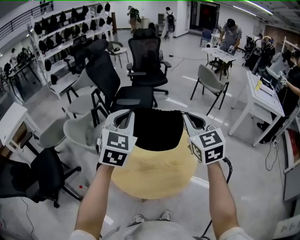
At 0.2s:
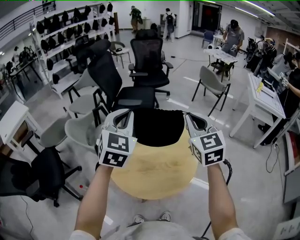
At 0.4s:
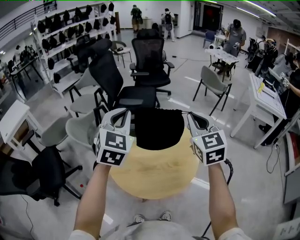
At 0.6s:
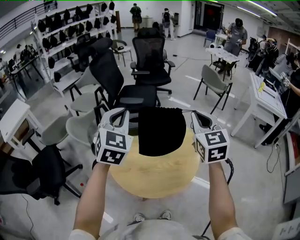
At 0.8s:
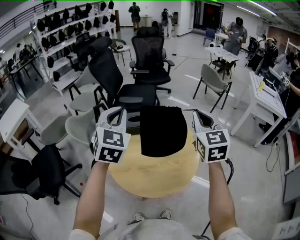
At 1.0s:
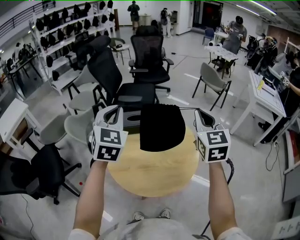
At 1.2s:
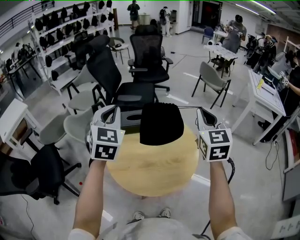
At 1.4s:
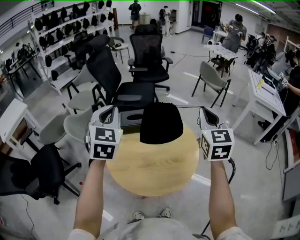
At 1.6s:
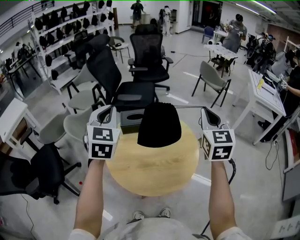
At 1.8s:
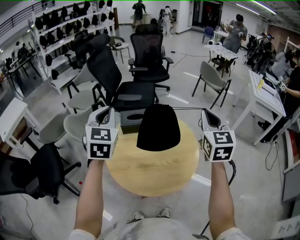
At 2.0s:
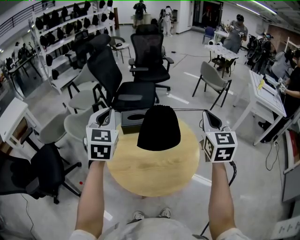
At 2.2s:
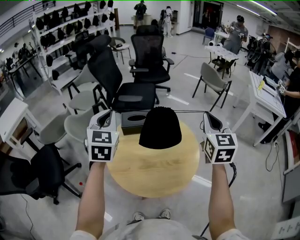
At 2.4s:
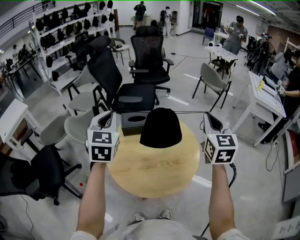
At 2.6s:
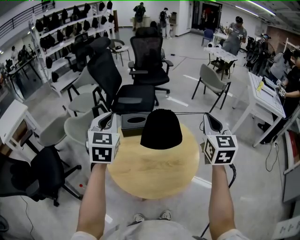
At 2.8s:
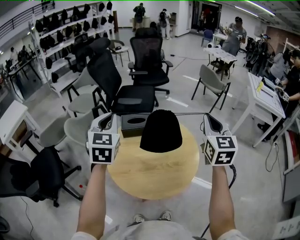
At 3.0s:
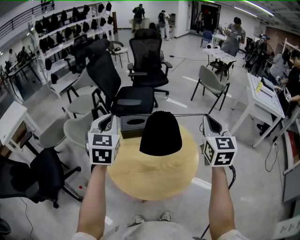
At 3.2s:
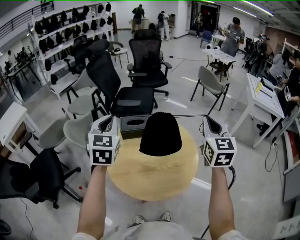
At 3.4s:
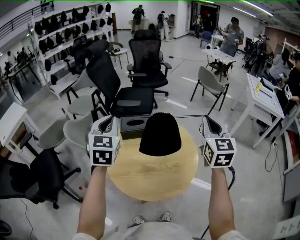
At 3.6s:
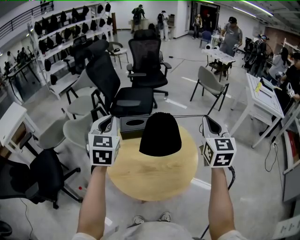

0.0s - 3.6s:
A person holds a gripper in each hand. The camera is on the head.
0.0s - 1.8s: The left gripper shifts about 10 cm to the left. The right gripper shifts some 5 cm to the right.
1.8s - 3.6s: There are only small adjustments of the grippers.

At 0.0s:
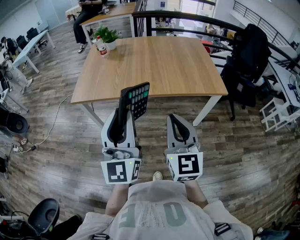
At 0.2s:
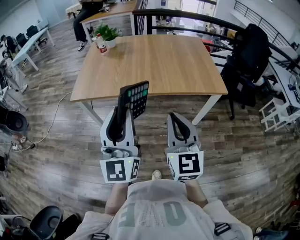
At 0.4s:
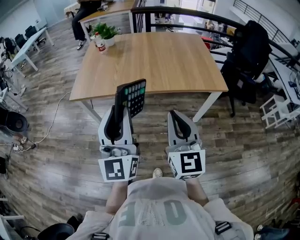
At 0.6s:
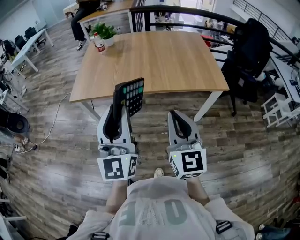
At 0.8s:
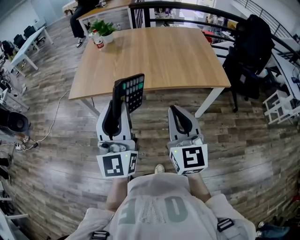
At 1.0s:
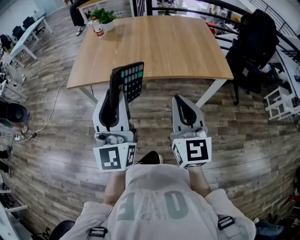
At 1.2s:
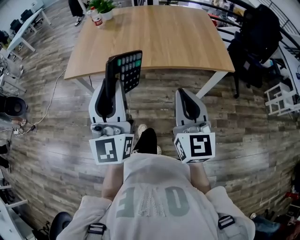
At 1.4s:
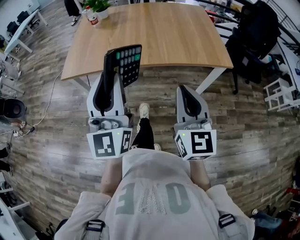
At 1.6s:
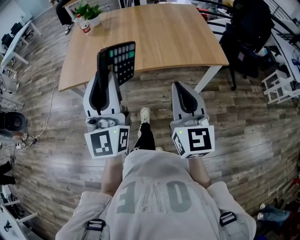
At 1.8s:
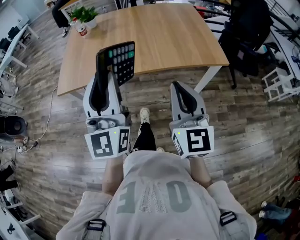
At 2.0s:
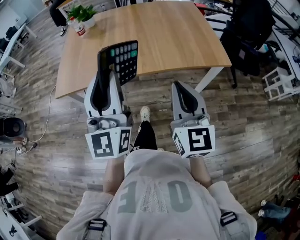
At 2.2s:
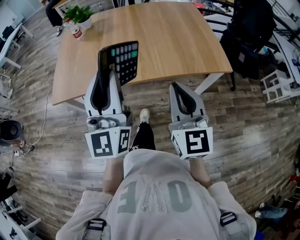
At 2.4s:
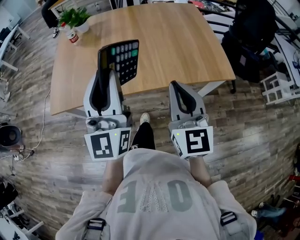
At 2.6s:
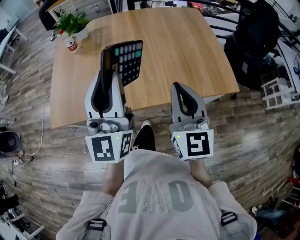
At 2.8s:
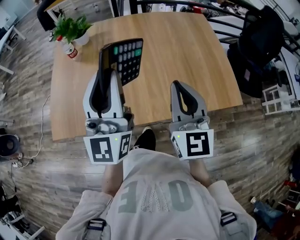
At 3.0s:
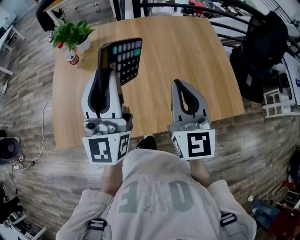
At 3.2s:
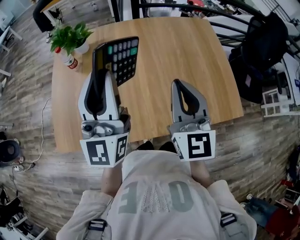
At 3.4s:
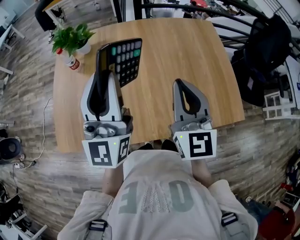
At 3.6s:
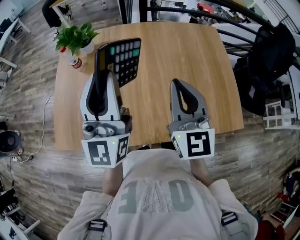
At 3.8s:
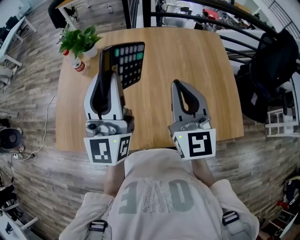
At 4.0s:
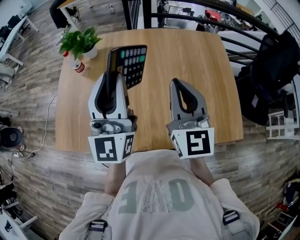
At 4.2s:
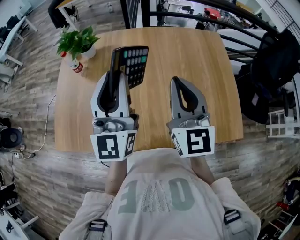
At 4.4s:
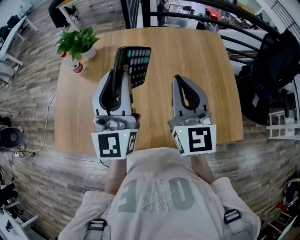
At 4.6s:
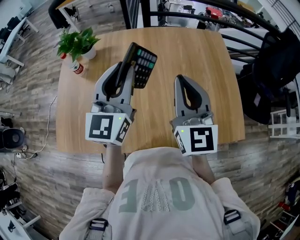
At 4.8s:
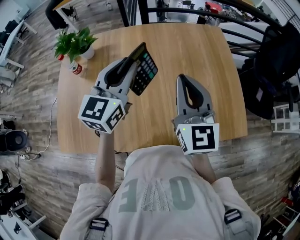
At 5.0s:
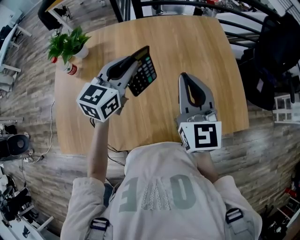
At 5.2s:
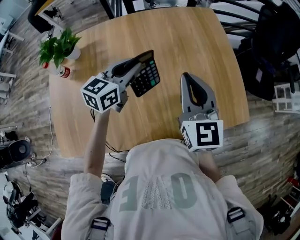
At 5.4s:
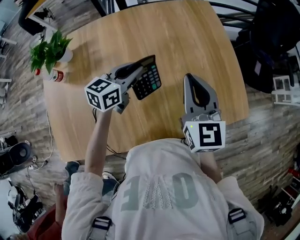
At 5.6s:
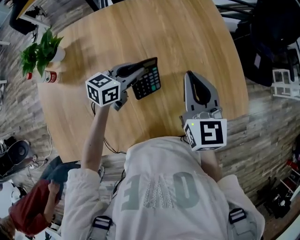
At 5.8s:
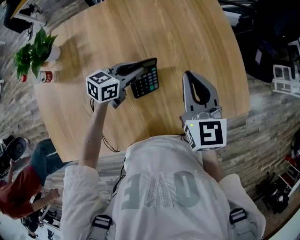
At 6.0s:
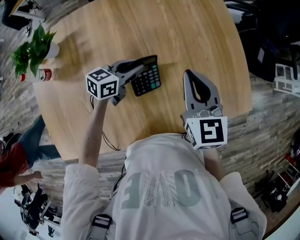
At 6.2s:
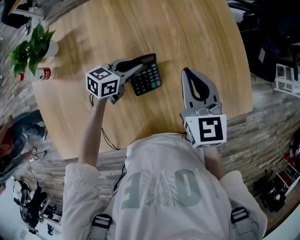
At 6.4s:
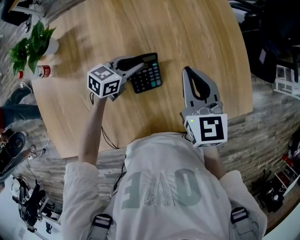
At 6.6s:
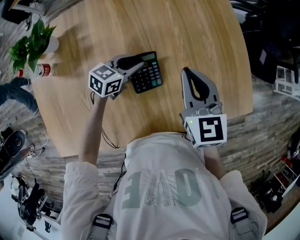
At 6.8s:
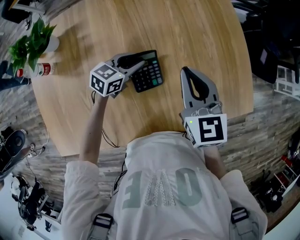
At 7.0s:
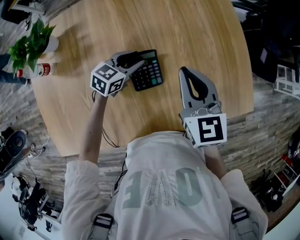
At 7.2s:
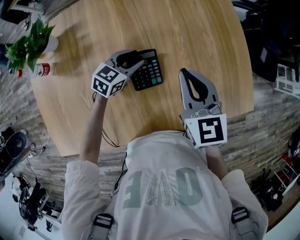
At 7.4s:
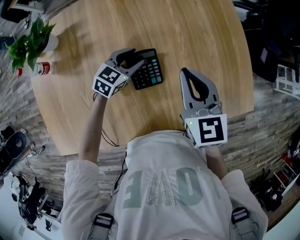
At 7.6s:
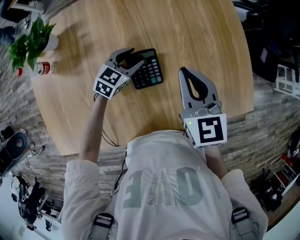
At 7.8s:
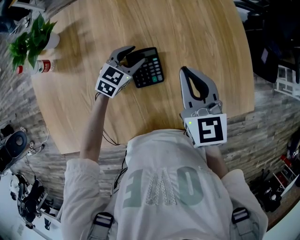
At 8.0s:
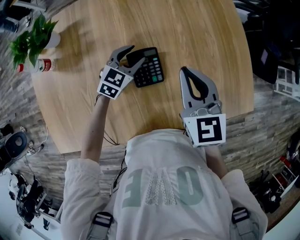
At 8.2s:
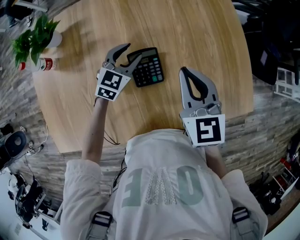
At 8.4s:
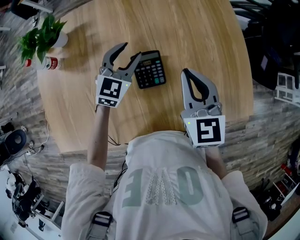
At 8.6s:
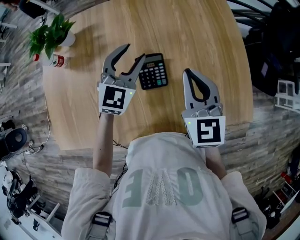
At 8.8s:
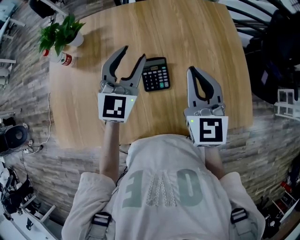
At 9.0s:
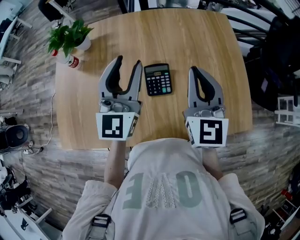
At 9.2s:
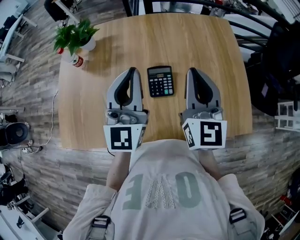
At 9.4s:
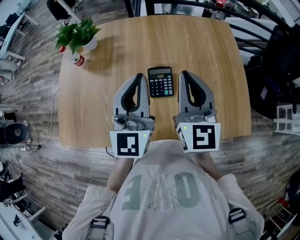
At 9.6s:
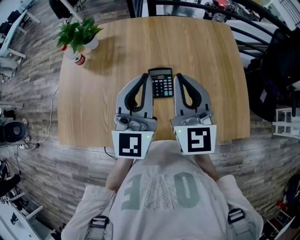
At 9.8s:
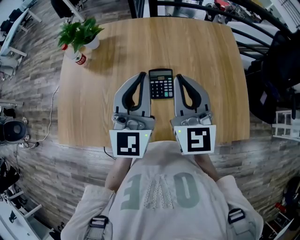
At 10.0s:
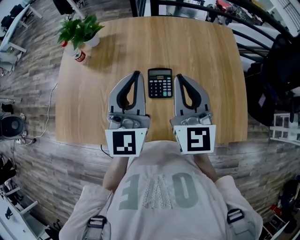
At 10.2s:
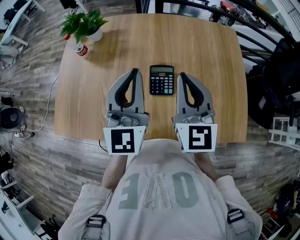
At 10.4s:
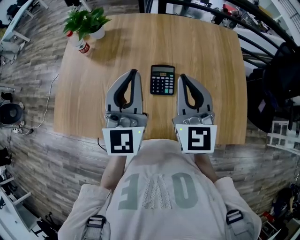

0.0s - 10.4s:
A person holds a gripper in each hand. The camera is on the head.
0.0s - 1.4s: The right gripper changes place by roughly 5 cm.
1.4s - 3.0s: The two grippers travel together, forward, approximately 40 cm.
3.0s - 4.4s: The left gripper heads forward and to the right, covering some 10 cm, while the right gripper heads forward, covering about 10 cm.
4.4s - 6.0s: The right gripper moves downward, approximately 15 cm, and swivels roughly 30 degrees. Meanwhile the left gripper travels downward by some 30 cm, and angles its fingers downward, by some 40 degrees.
6.0s - 7.4s: The left gripper turns by roughly 30 degrees, and opens.
7.4s - 9.0s: The right gripper moves upward, roughly 10 cm, and swivels roughly 20 degrees. The left gripper is displaced upward by some 30 cm, and angles its fingers upward, by about 40 degrees.
9.0s - 10.4s: The left gripper goes approximately 5 cm backward, and closes up; the right gripper travels to the left by some 5 cm.

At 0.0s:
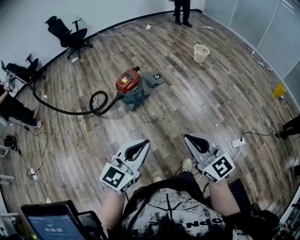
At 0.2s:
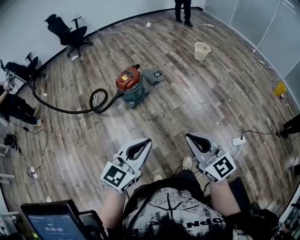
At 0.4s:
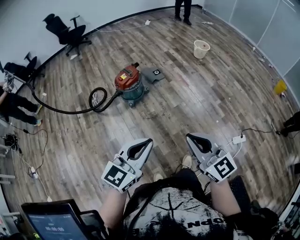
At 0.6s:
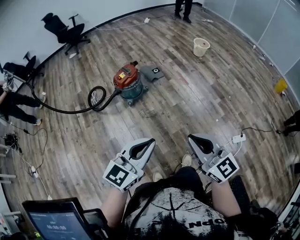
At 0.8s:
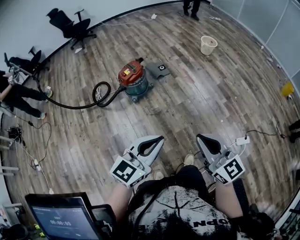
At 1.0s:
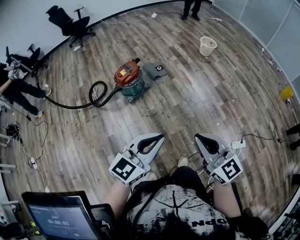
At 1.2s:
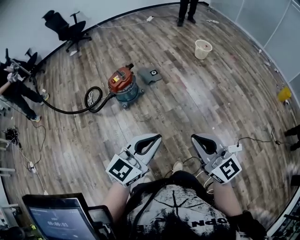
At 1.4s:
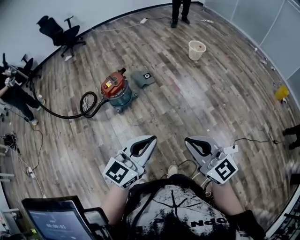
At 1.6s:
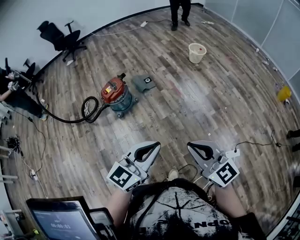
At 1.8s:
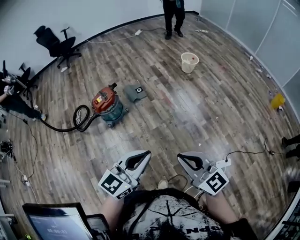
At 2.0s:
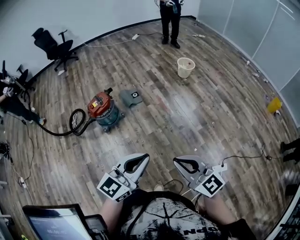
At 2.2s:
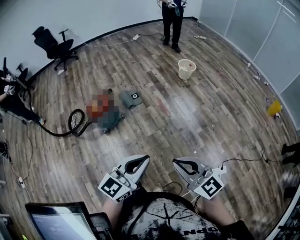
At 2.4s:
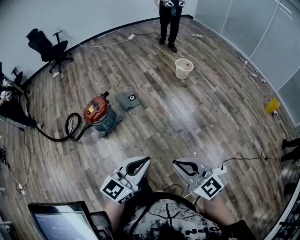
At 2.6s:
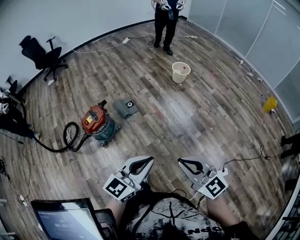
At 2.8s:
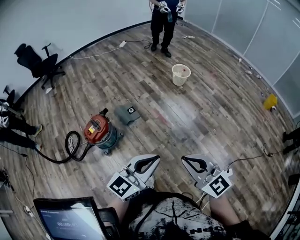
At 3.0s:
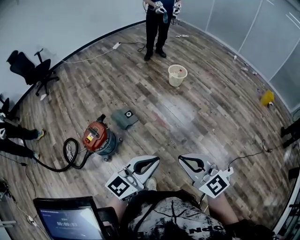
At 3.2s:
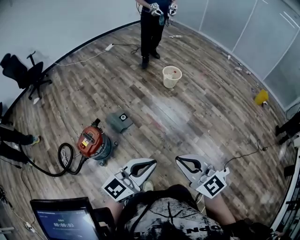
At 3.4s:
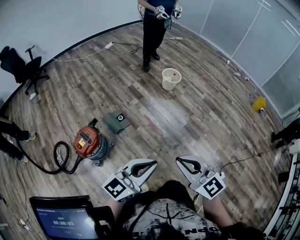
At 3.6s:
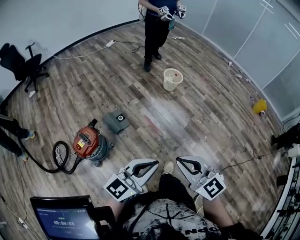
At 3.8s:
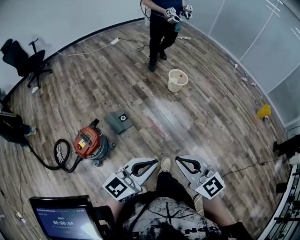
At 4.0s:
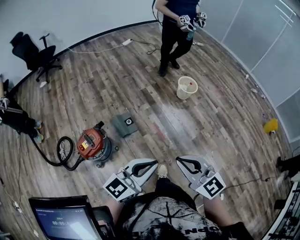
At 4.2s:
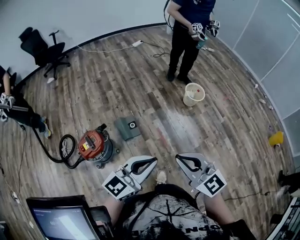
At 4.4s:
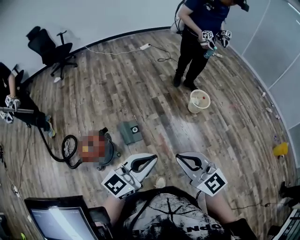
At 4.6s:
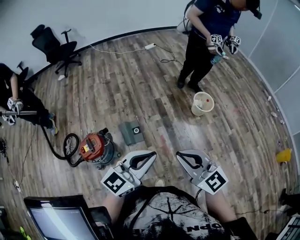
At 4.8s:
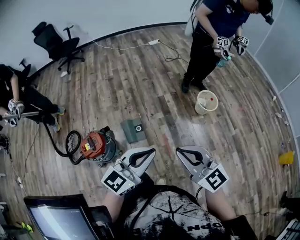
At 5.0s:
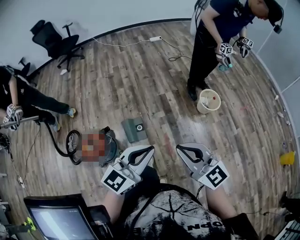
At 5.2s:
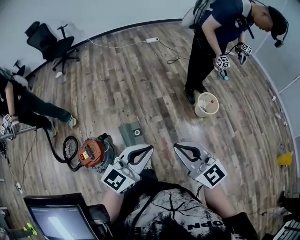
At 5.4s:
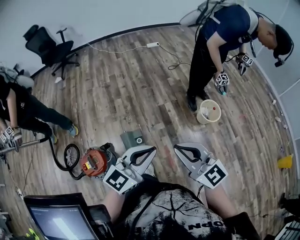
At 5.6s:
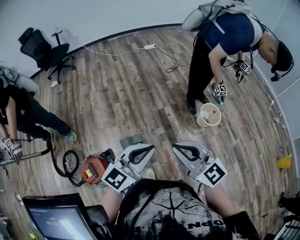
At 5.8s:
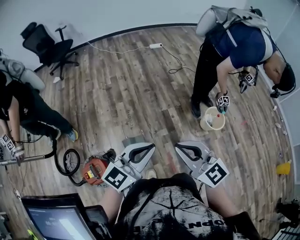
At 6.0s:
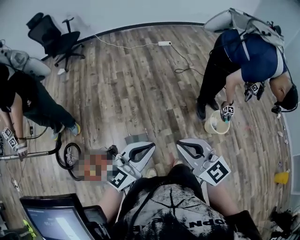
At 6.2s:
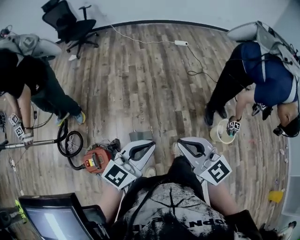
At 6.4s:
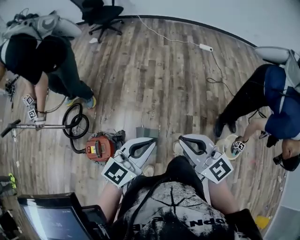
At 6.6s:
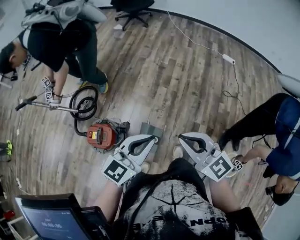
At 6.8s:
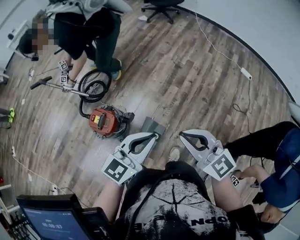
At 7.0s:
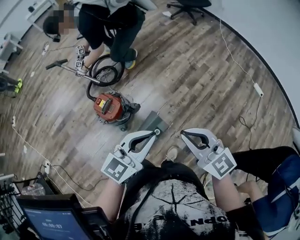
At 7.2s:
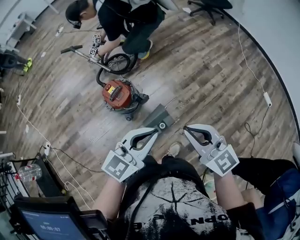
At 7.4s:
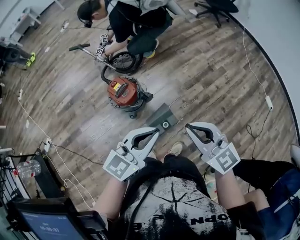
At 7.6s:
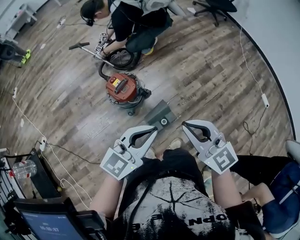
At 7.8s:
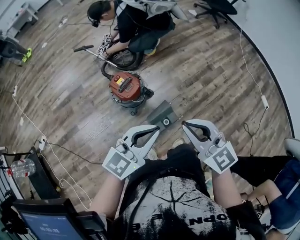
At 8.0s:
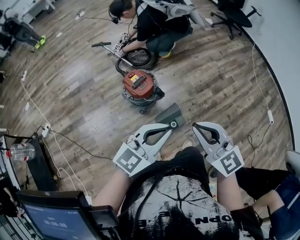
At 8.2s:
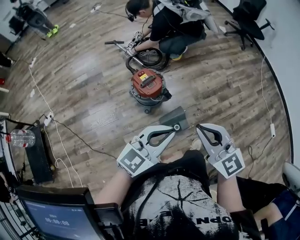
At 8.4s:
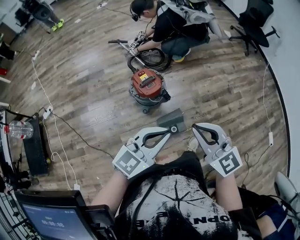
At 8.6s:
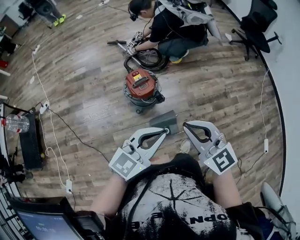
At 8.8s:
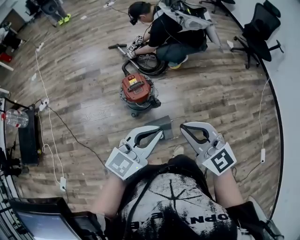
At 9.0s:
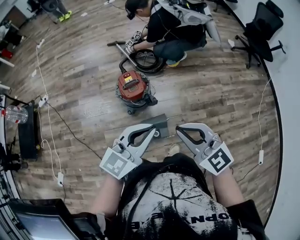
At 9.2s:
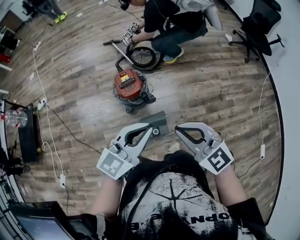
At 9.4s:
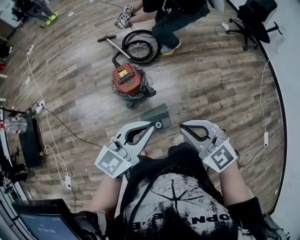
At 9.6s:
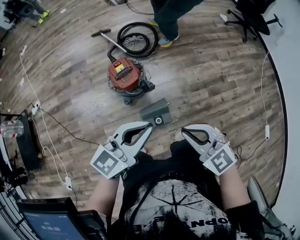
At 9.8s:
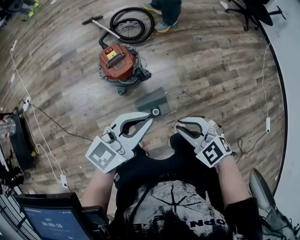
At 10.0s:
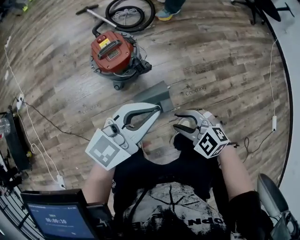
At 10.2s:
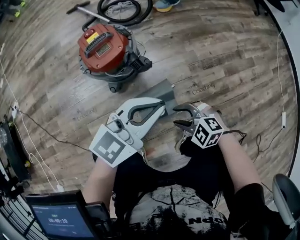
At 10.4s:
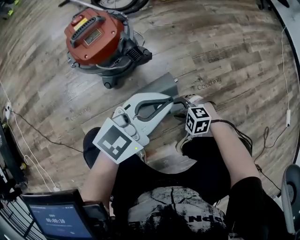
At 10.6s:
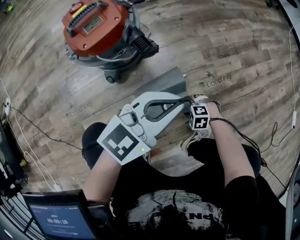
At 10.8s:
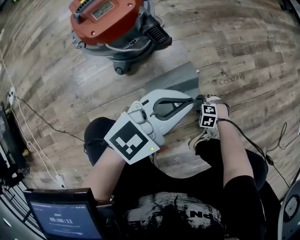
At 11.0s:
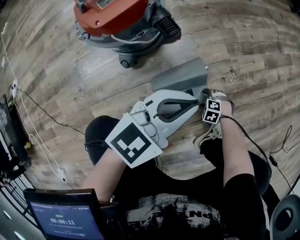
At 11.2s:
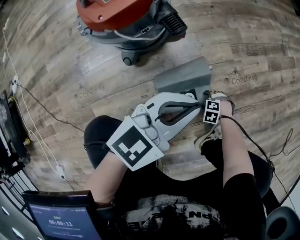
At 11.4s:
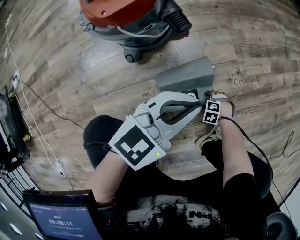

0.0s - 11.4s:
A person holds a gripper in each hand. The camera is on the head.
0.0s - 1.4s: The grippers both shift to the right and forward by roughly 25 cm.
1.4s - 2.8s: The two grippers go about 25 cm forward.
2.8s - 4.2s: The two grippers go some 30 cm forward.
4.2s - 5.6s: Both grippers move forward, approximately 35 cm.
5.6s - 7.2s: The right gripper changes place by about 25 cm, and swivels about 70 degrees; the left gripper changes place by roughly 20 cm, and rotates approximately 70 degrees.
7.2s - 8.6s: The two grippers go some 10 cm to the left. The right gripper changes its angle by some 20 degrees.
8.6s - 10.0s: The right gripper is displaced downward by about 40 cm, points its fingers about 40 degrees further downward, and opens up; the left gripper is displaced downward by some 25 cm.
10.0s - 11.4s: The right gripper moves downward, approximately 60 cm, tips its fingers downward by roughly 40 degrees, and opens its fingers, while the left gripper travels downward by approximately 35 cm.
